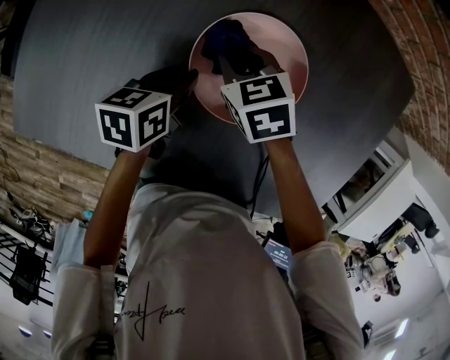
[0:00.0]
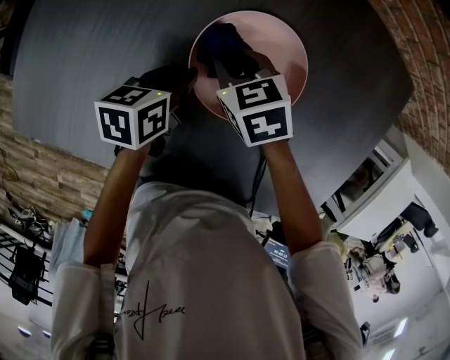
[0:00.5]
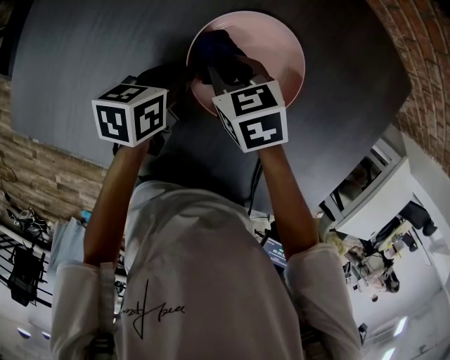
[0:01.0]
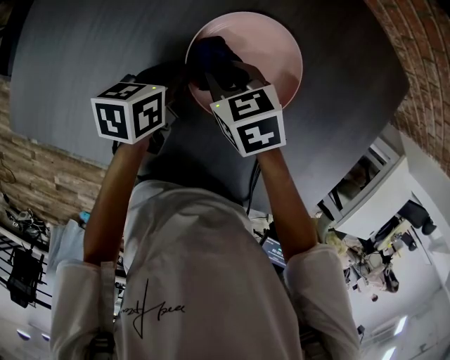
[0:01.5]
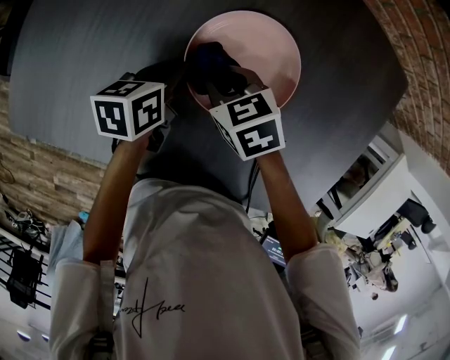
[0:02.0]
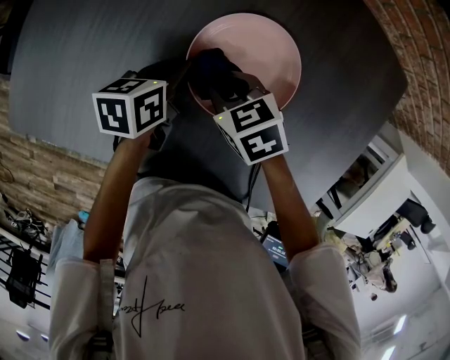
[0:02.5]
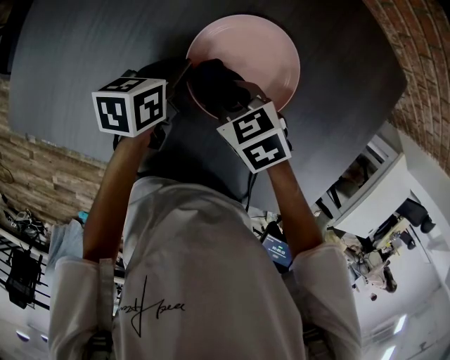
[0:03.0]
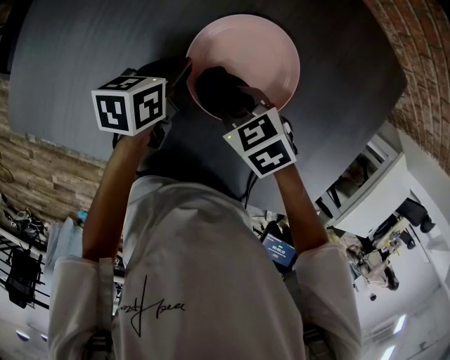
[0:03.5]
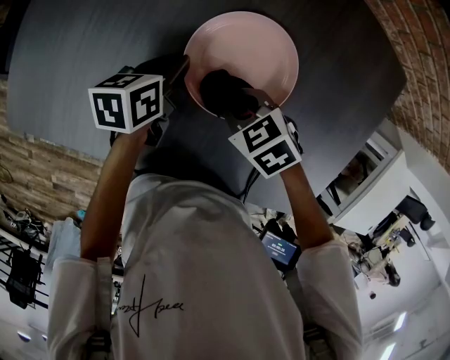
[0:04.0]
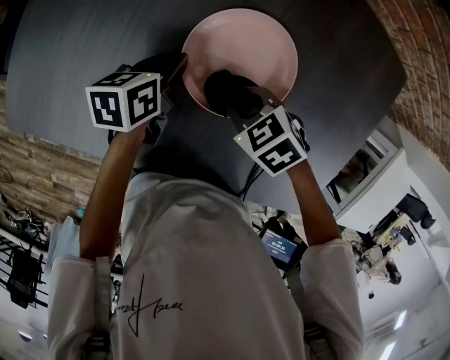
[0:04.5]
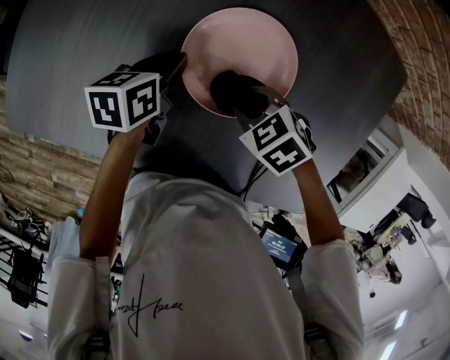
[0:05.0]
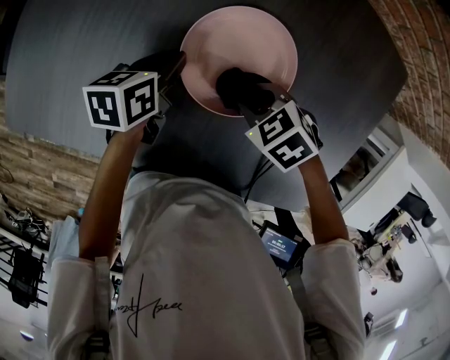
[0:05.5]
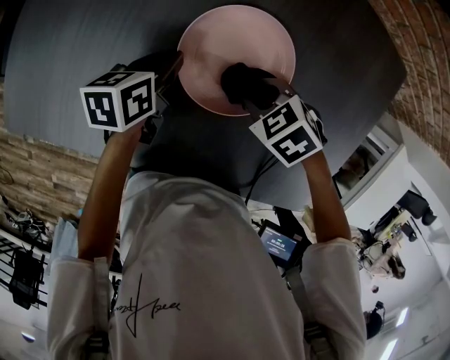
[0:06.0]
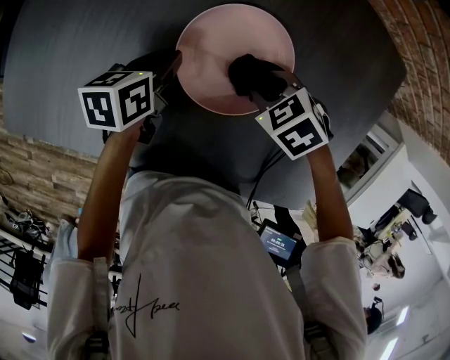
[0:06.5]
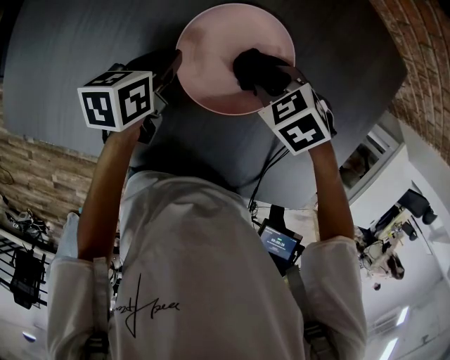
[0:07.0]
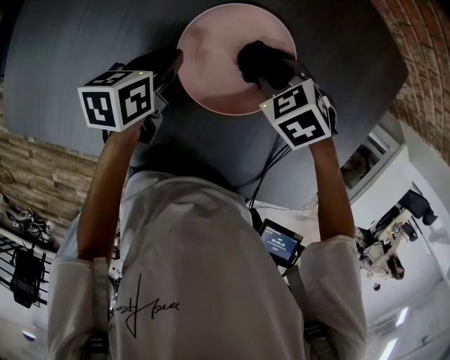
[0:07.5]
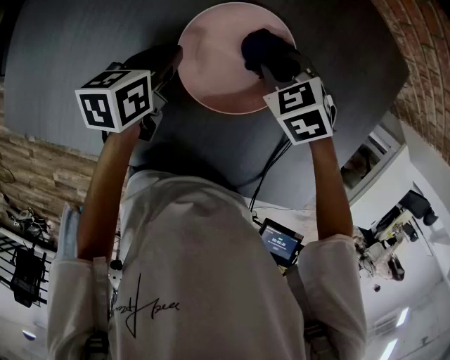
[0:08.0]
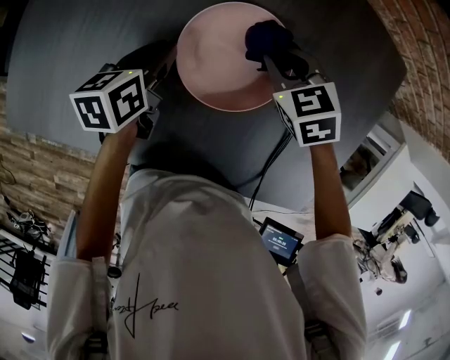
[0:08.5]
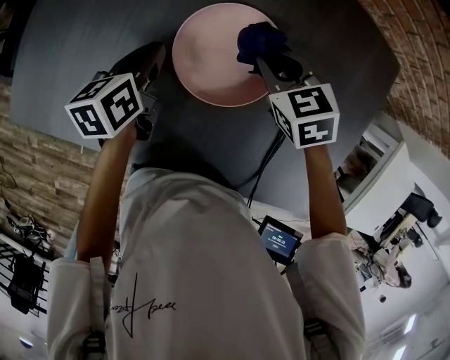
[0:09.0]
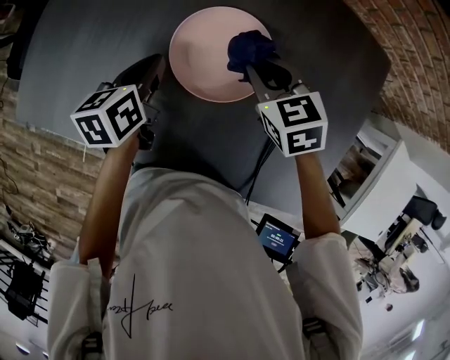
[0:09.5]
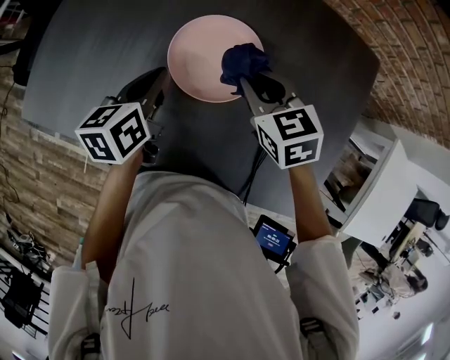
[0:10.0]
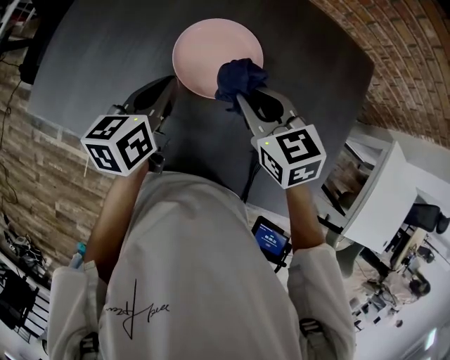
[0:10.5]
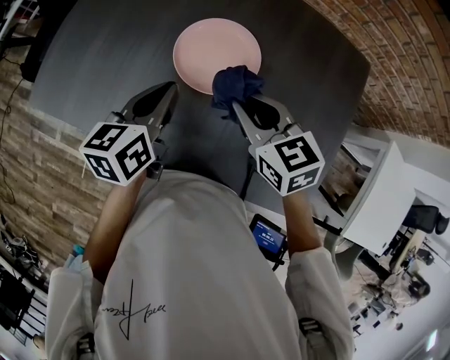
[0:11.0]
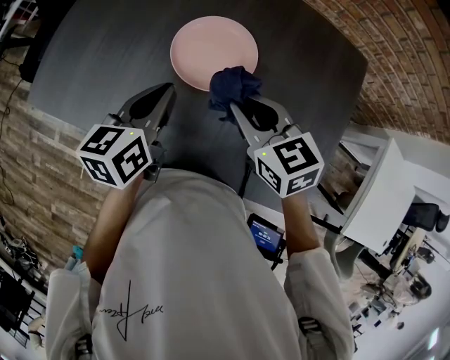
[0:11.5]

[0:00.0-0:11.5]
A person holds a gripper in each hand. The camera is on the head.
0:00.0 to 0:02.0: The right gripper shifts some 5 cm backward.
0:02.0 to 0:04.0: The right gripper moves backward, some 5 cm.
0:04.0 to 0:06.0: The right gripper changes place by roughly 5 cm.
0:06.0 to 0:07.5: The right gripper shifts by about 5 cm.
0:07.5 to 0:09.5: The two grippers go roughly 10 cm upward. The right gripper rotates approximately 30 degrees.
0:09.5 to 0:11.5: The right gripper shifts roughly 15 cm backward and upward, while the left gripper moves backward, upward and to the right, approximately 15 cm.

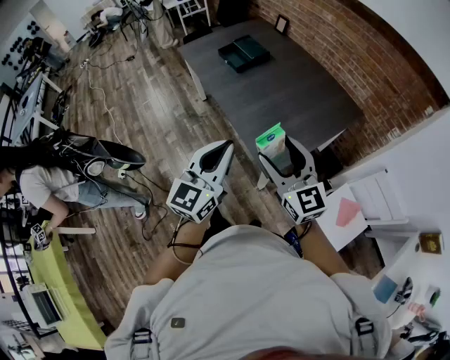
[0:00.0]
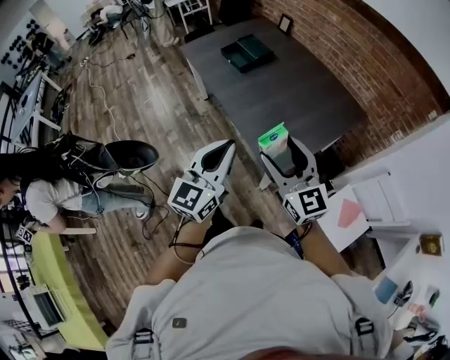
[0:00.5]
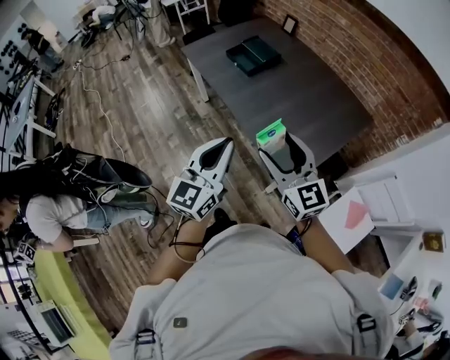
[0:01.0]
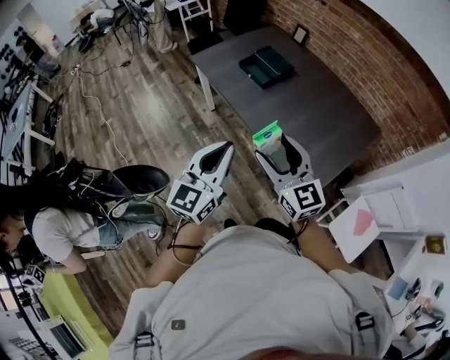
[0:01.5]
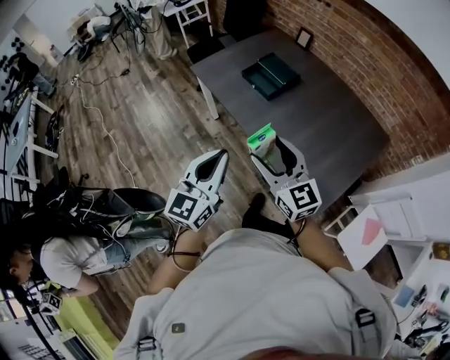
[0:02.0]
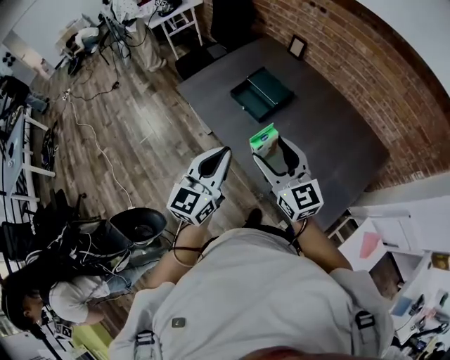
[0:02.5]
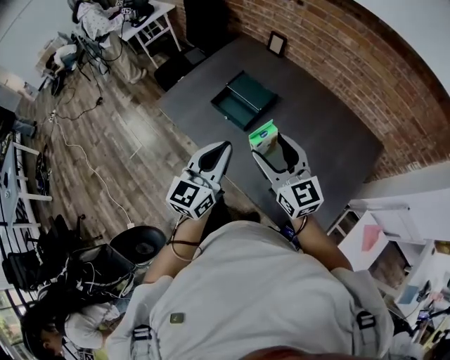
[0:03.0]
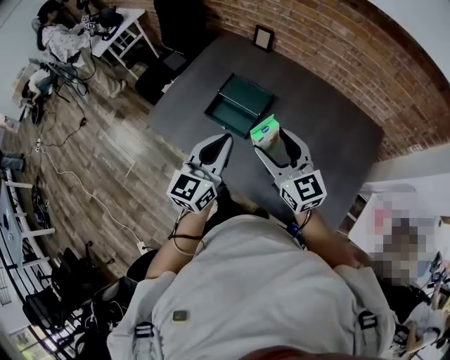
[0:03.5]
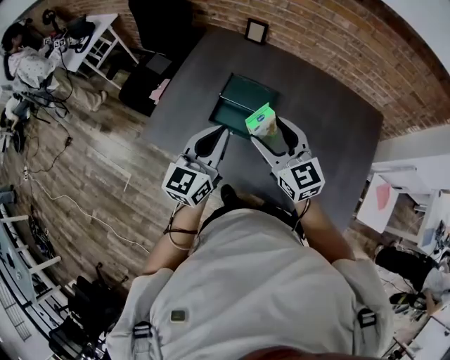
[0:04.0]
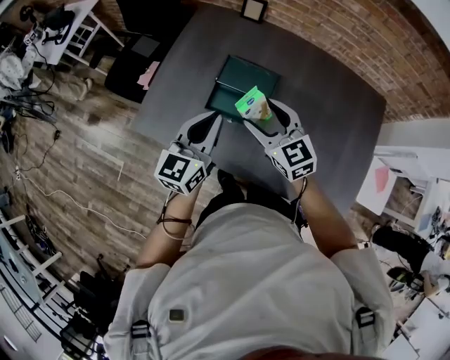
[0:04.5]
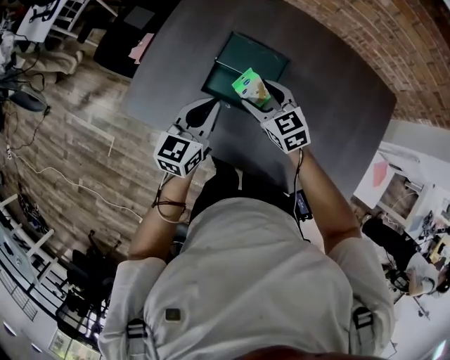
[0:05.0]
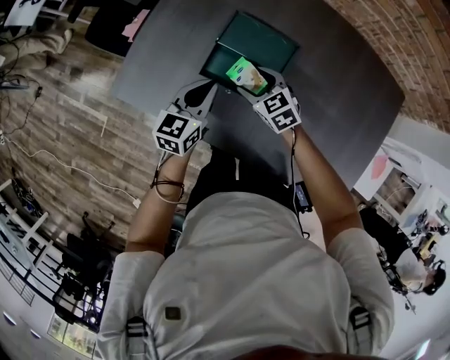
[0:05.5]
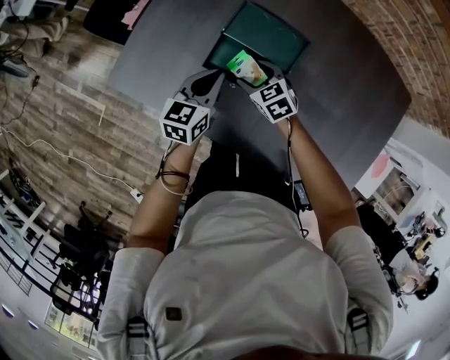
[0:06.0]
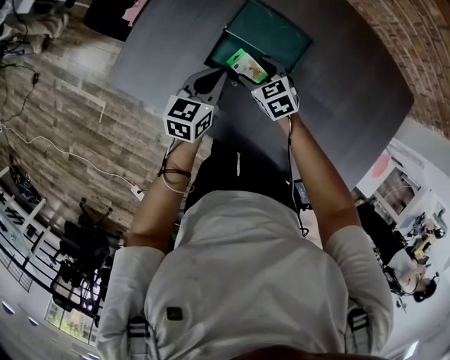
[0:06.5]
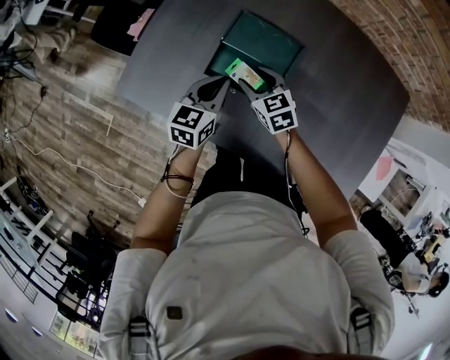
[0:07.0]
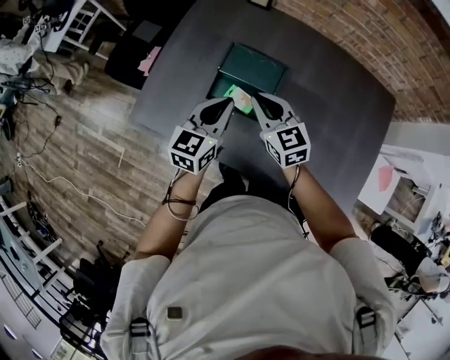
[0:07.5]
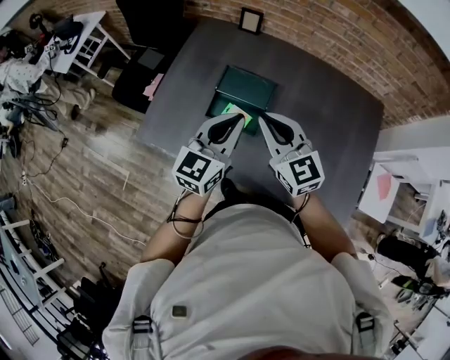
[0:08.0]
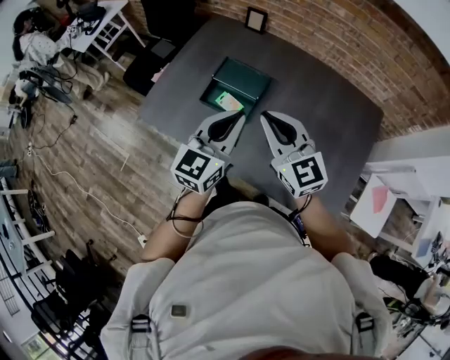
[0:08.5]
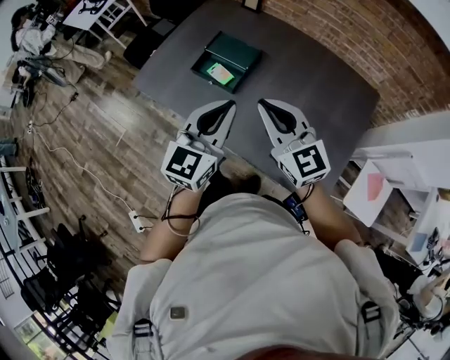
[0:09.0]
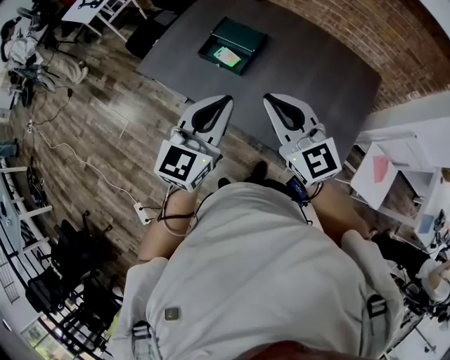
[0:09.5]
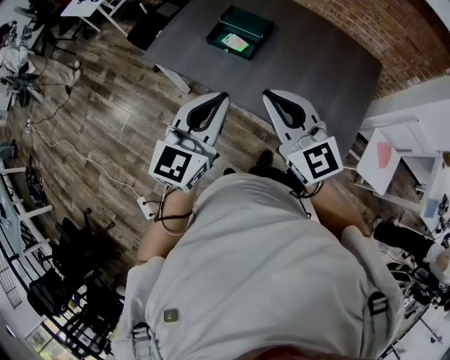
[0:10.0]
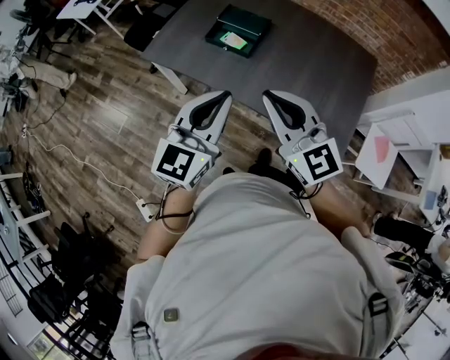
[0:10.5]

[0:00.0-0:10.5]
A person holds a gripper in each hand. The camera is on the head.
0:00.0 to 0:02.0: The grippers both shift to the left and forward by approximately 35 cm.
0:02.0 to 0:04.0: The pair of grippers is taken approximately 50 cm. The right gripper turns by about 30 degrees. Meanwhile the left gripper changes its angle by roughly 30 degrees.
0:04.0 to 0:06.5: The right gripper moves downward, some 40 cm, and tips its fingers downward by approximately 40 degrees, while the left gripper heads downward and forward, covering some 35 cm, and changes its angle by approximately 30 degrees.
0:06.5 to 0:08.5: The right gripper heads upward and backward, covering approximately 50 cm, angles its fingers upward, by some 40 degrees, and closes; the left gripper is displaced upward, backward and to the right by some 40 cm, and turns by roughly 30 degrees.
0:08.5 to 0:10.5: The two grippers go some 30 cm backward.

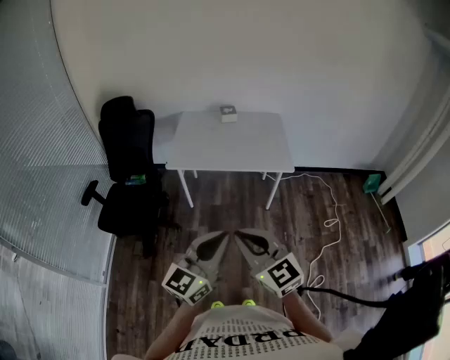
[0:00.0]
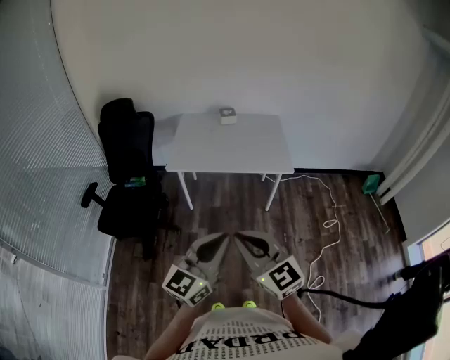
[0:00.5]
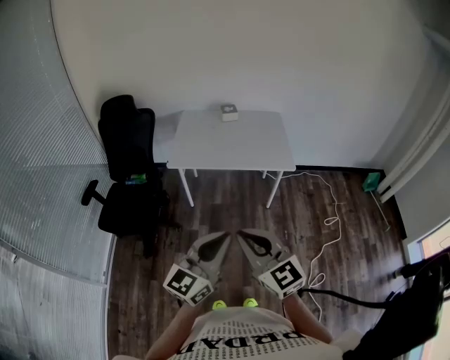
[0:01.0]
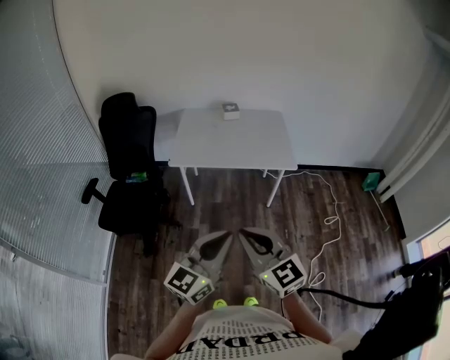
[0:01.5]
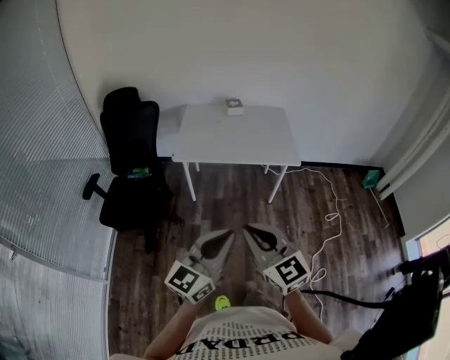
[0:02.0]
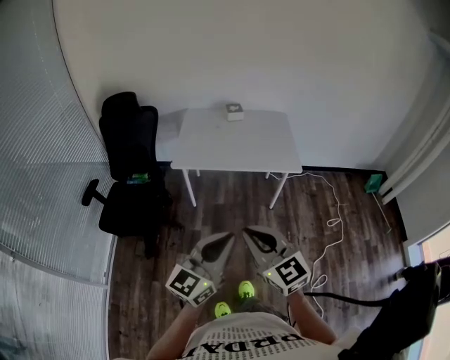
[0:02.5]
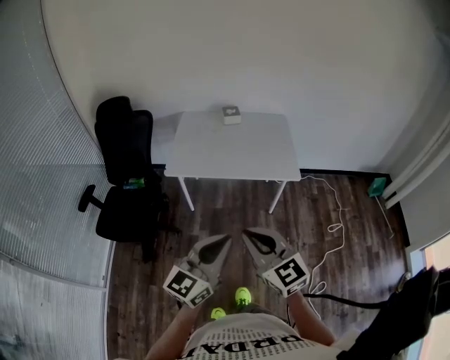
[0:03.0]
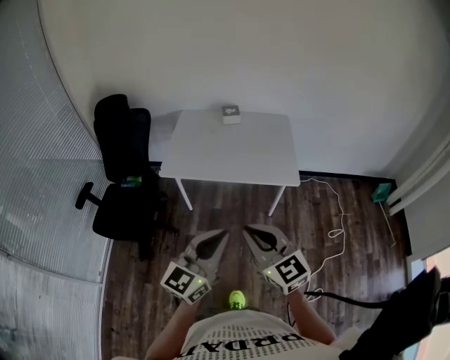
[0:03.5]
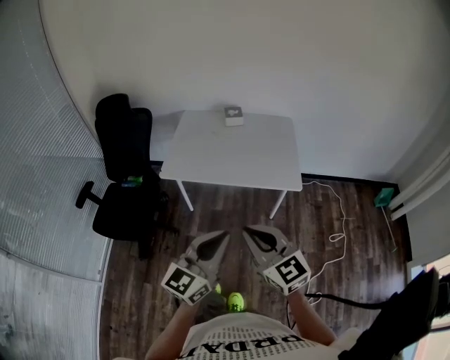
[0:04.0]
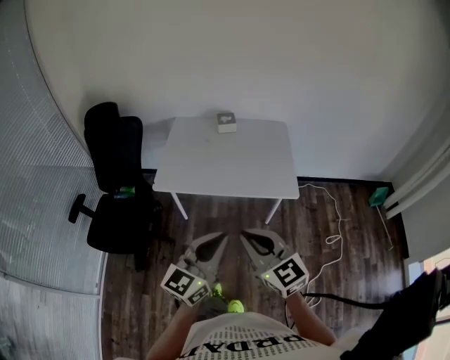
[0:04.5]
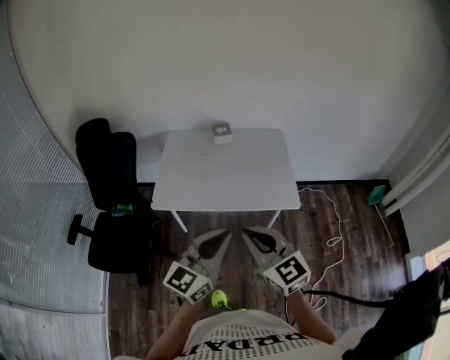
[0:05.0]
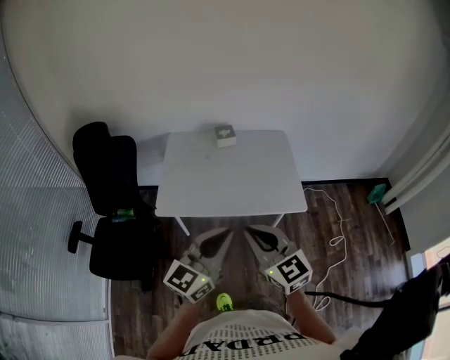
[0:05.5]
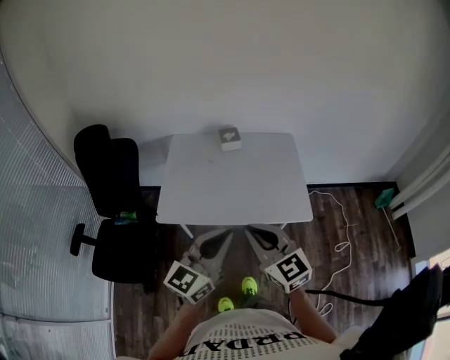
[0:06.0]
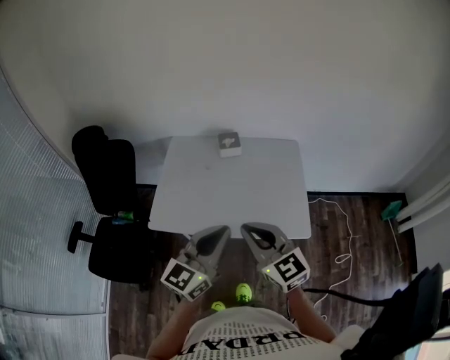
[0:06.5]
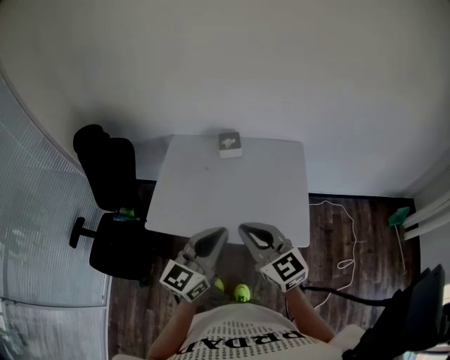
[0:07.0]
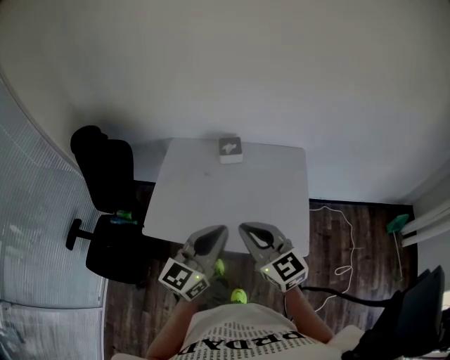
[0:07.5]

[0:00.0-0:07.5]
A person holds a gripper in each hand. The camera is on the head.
0:00.0 to 0:02.0: The left gripper goes approximately 5 cm to the left.
0:02.0 to 0:04.0: The grippers both shift forward and to the right by roughly 20 cm.
0:04.0 to 0:05.5: The left gripper goes about 20 cm forward; the right gripper moves forward and to the left, some 20 cm.
0:05.5 to 0:07.5: The two grippers go some 25 cm forward and to the right.
